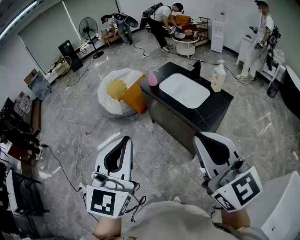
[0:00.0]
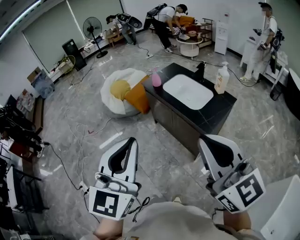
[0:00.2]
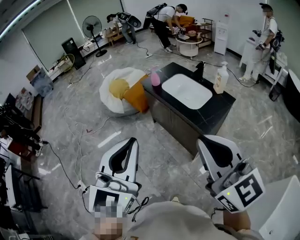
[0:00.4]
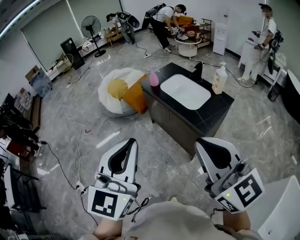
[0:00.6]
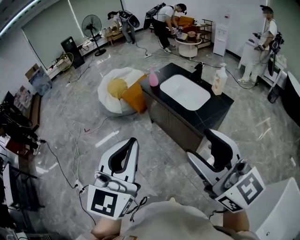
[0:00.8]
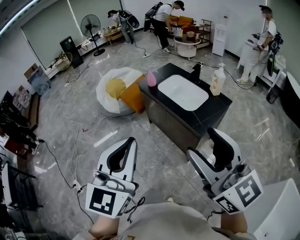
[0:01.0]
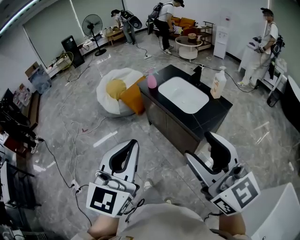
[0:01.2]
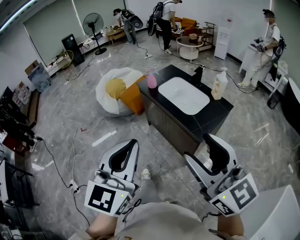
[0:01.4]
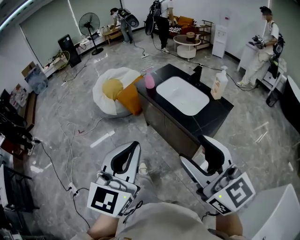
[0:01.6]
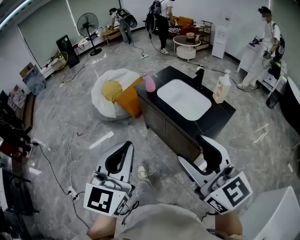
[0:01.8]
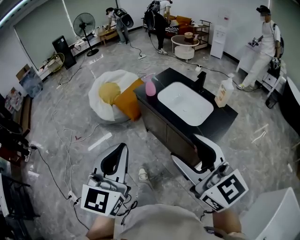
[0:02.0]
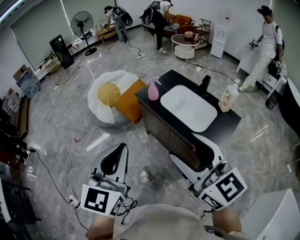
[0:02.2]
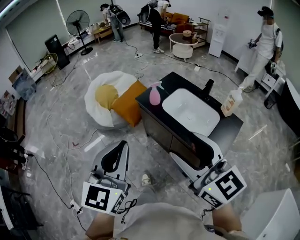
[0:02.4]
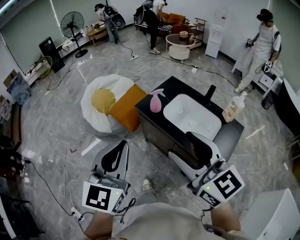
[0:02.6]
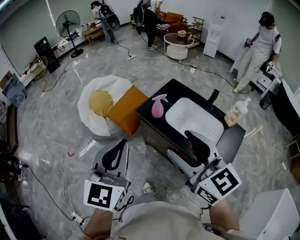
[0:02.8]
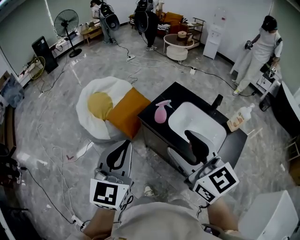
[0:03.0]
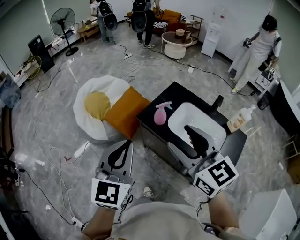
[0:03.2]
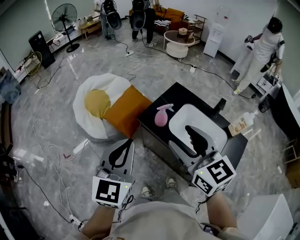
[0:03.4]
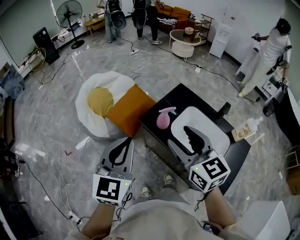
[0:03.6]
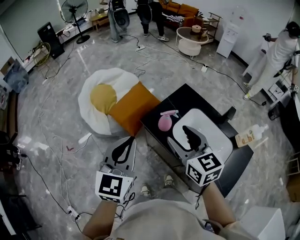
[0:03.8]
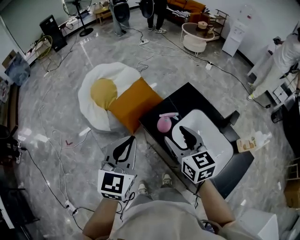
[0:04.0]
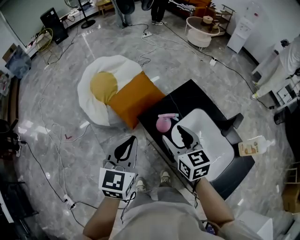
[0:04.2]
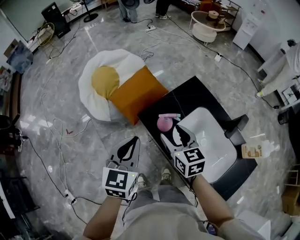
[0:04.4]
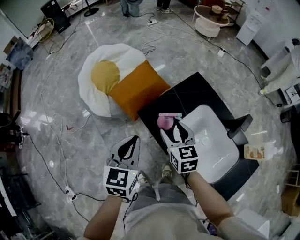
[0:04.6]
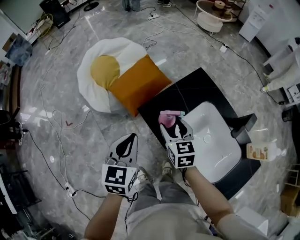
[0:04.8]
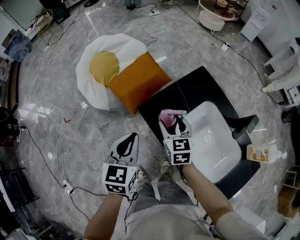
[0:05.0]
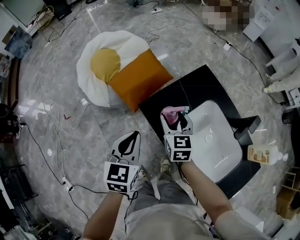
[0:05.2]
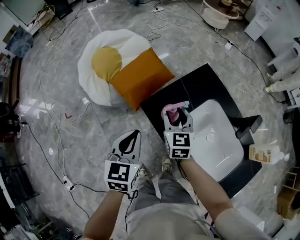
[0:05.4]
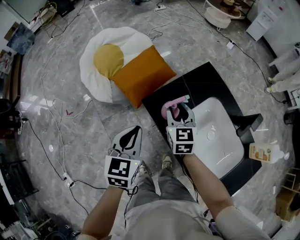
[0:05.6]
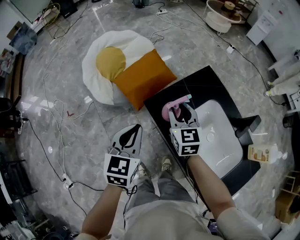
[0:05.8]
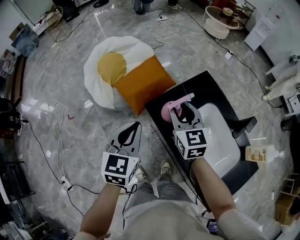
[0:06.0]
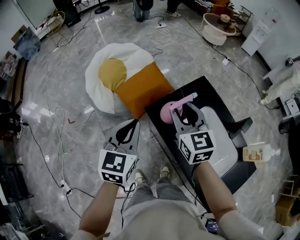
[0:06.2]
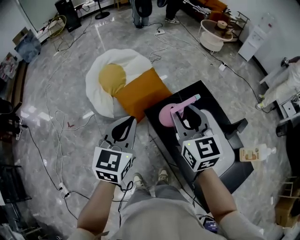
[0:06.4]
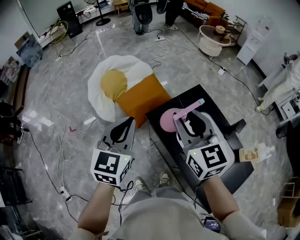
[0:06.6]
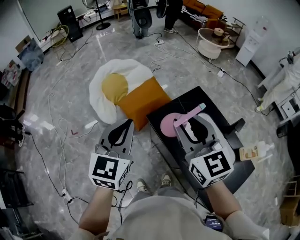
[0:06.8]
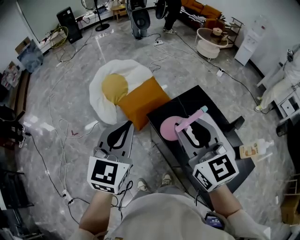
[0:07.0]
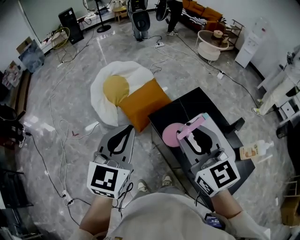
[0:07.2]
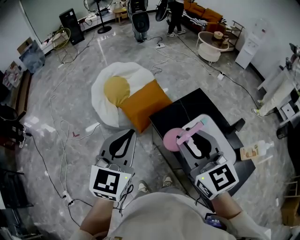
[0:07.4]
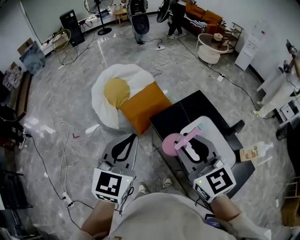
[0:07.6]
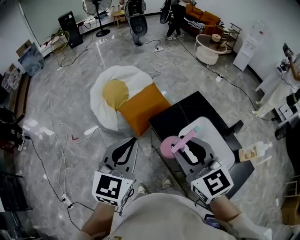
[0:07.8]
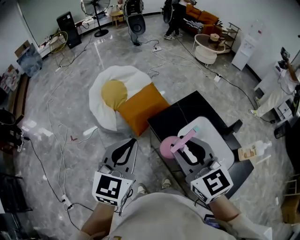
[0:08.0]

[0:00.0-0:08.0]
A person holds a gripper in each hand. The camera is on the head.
0:00.0 to 0:01.6: The left gripper heads downward and forward, covering about 10 cm. Meanwhile the right gripper is displaced downward by about 5 cm, and opens up.
0:01.6 to 0:03.2: The two grippers travel together, forward, about 50 cm.
0:03.2 to 0:04.8: The two grippers go roughly 35 cm downward and forward. The left gripper rotates roughly 30 degrees, while the right gripper turns by approximately 20 degrees.
0:04.8 to 0:06.4: The right gripper moves upward, approximately 20 cm, turns by some 20 degrees, and closes up, while the left gripper moves upward, approximately 10 cm.
0:06.4 to 0:08.0: Both grippers travel together backward and upward, approximately 15 cm.

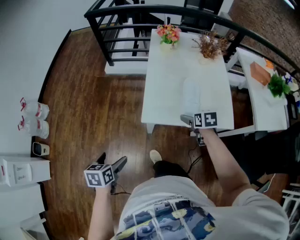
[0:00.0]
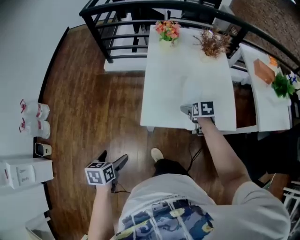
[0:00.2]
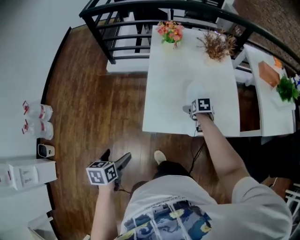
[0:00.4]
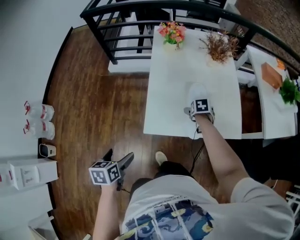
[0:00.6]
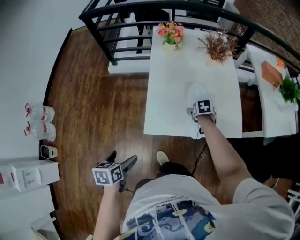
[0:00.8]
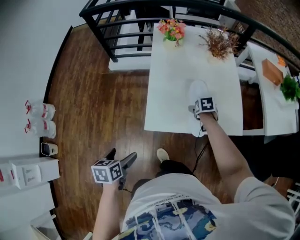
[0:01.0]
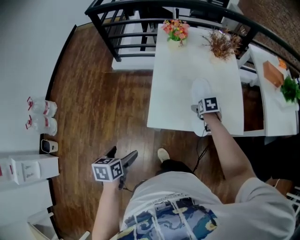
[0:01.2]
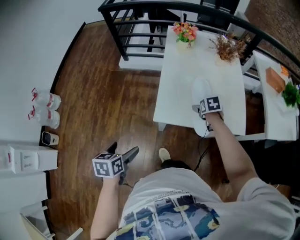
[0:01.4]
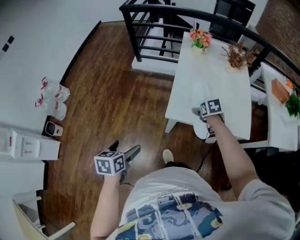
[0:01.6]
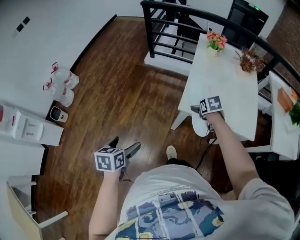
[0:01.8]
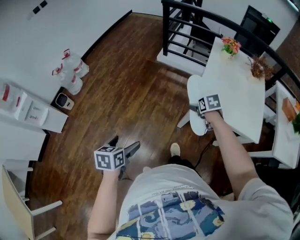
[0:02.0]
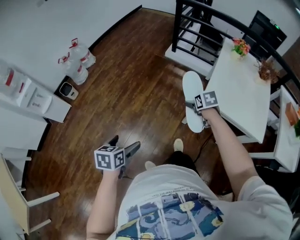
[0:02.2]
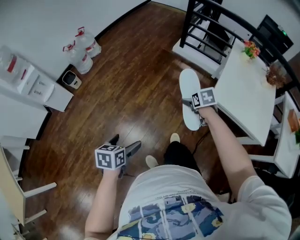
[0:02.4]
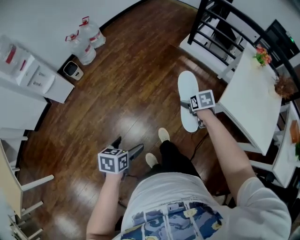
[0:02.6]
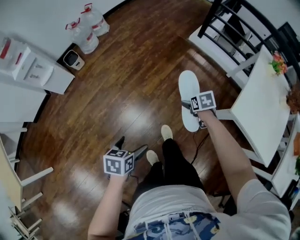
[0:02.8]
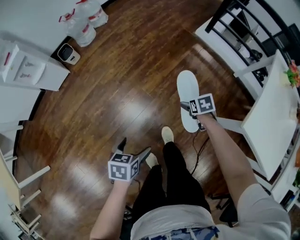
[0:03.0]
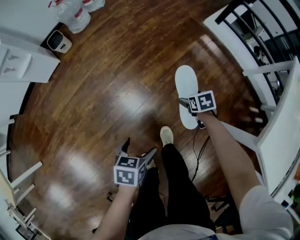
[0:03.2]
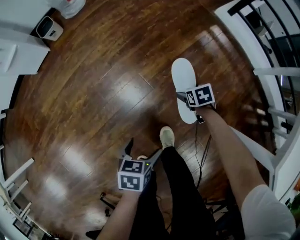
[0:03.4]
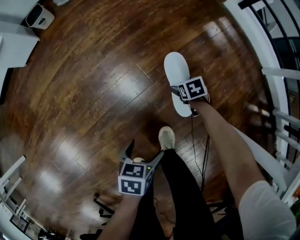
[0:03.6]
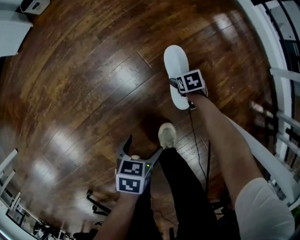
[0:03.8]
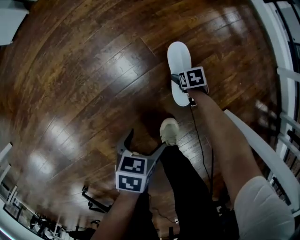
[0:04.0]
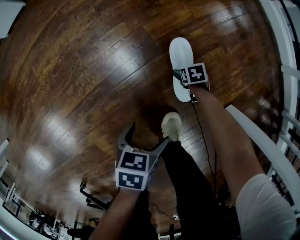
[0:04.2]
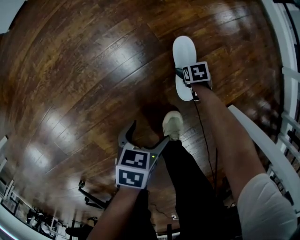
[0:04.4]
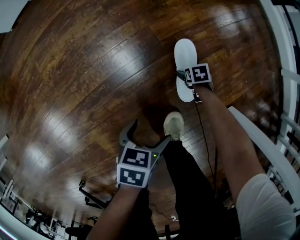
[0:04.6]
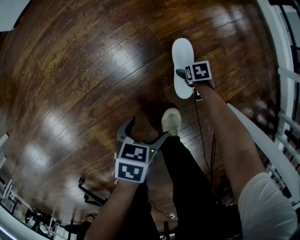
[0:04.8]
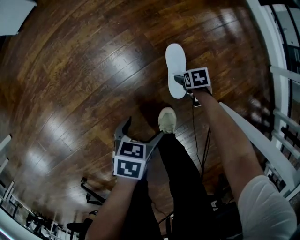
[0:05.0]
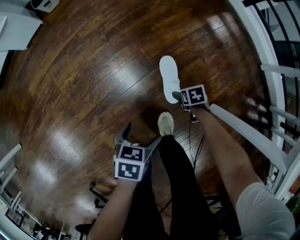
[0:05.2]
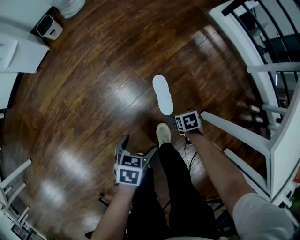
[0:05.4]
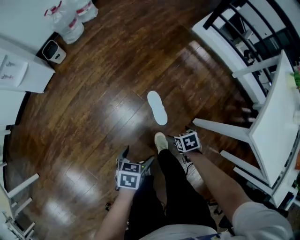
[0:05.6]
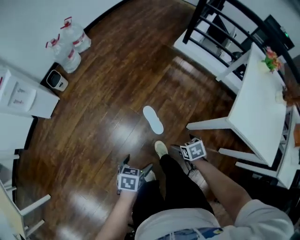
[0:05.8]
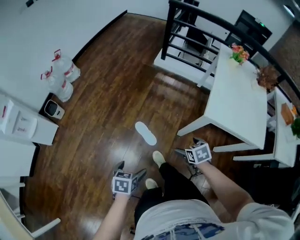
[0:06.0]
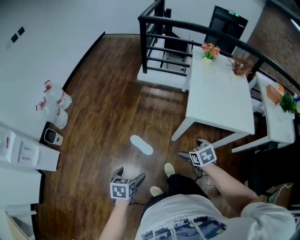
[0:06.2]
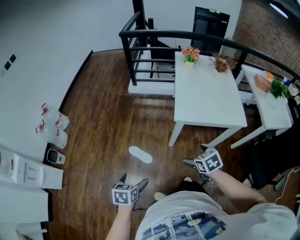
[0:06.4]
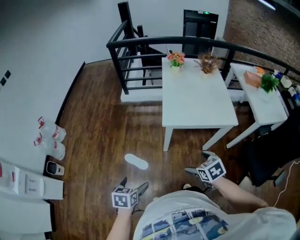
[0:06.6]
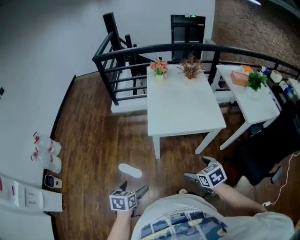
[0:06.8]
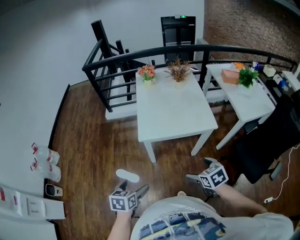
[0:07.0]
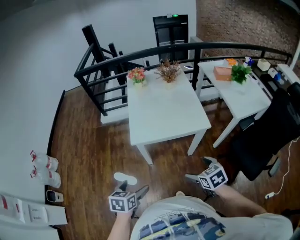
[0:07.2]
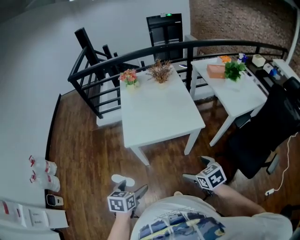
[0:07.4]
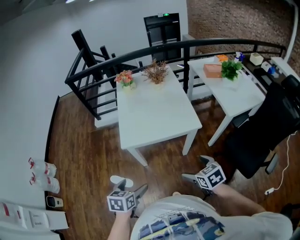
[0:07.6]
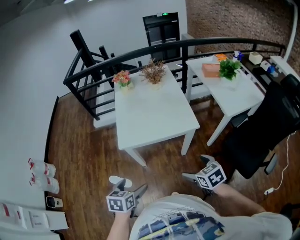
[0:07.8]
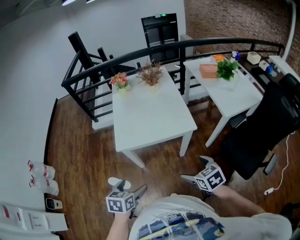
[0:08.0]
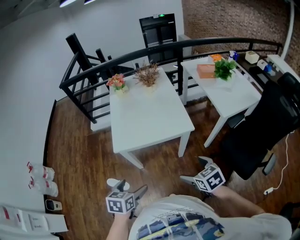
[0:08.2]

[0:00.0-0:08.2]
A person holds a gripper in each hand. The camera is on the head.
0:00.0 to 0:01.6: The right gripper goes roughly 10 cm to the left and forward; the left gripper moves roughly 10 cm forward and comes back.
0:01.6 to 0:03.2: The left gripper heads downward, covering roughly 35 cm, and swivels approximately 30 degrees. Meanwhile the right gripper changes place by some 70 cm, and swivels roughly 40 degrees.
0:03.2 to 0:05.0: Both grippers travel together downward, roughly 35 cm.
0:05.0 to 0:06.6: Both grippers travel together upward, some 80 cm. The left gripper rolls clockwise, seen from behind, by approximately 50 degrees, while the right gripper turns by about 50 degrees.
0:06.6 to 0:08.2: The two grippers go some 30 cm to the right.

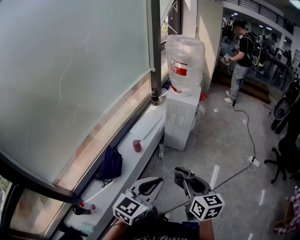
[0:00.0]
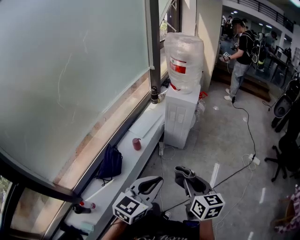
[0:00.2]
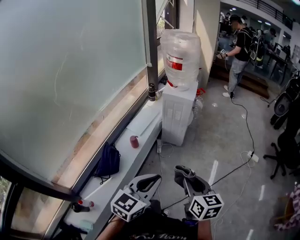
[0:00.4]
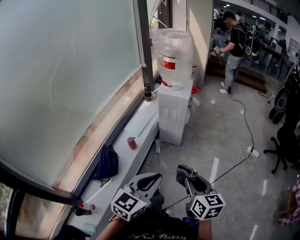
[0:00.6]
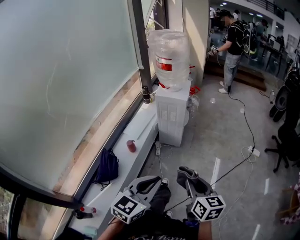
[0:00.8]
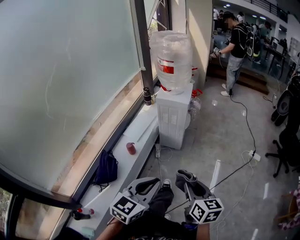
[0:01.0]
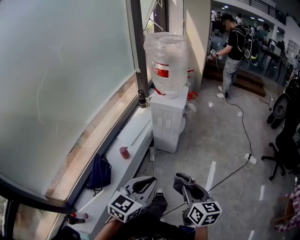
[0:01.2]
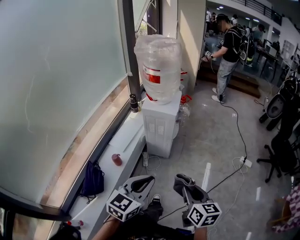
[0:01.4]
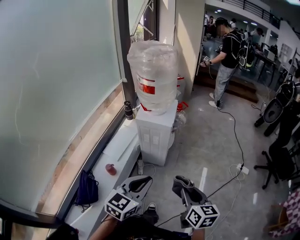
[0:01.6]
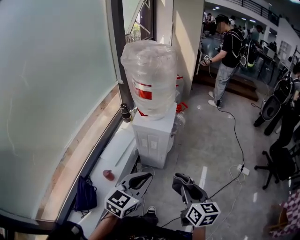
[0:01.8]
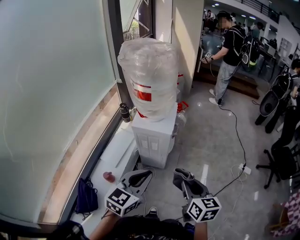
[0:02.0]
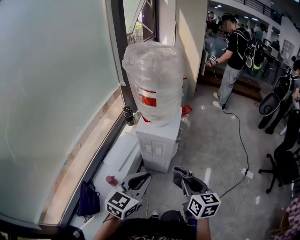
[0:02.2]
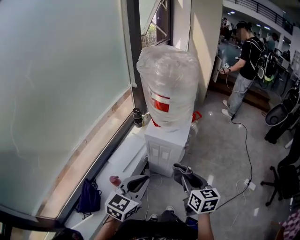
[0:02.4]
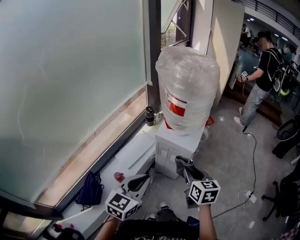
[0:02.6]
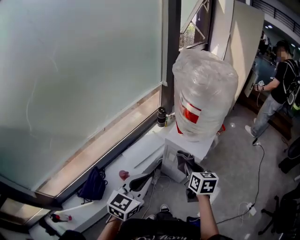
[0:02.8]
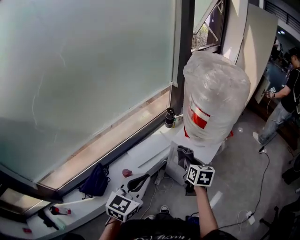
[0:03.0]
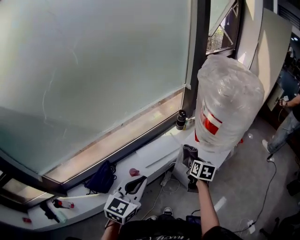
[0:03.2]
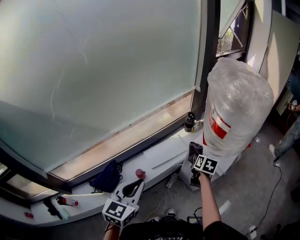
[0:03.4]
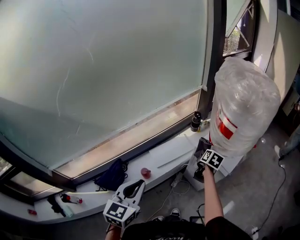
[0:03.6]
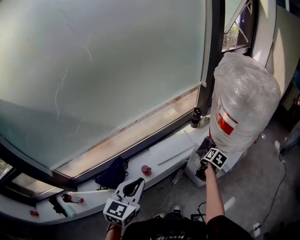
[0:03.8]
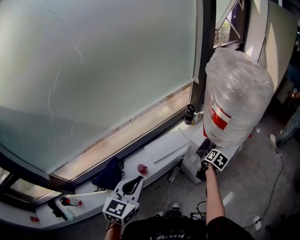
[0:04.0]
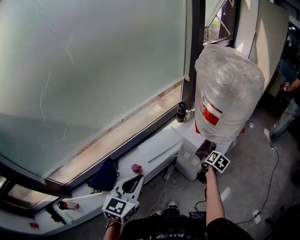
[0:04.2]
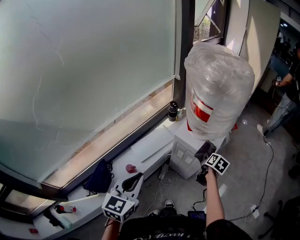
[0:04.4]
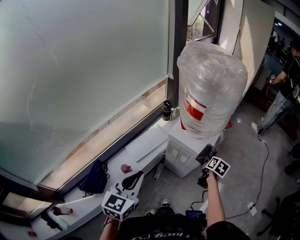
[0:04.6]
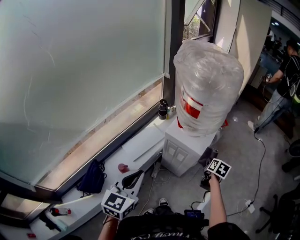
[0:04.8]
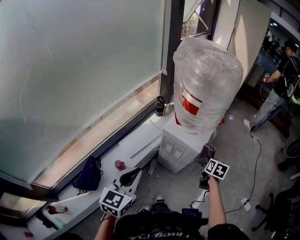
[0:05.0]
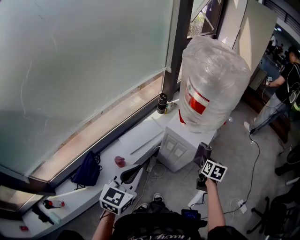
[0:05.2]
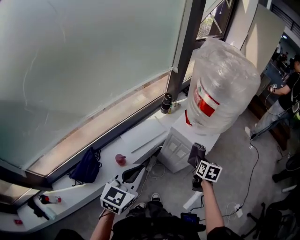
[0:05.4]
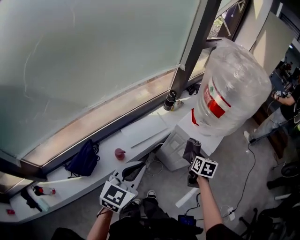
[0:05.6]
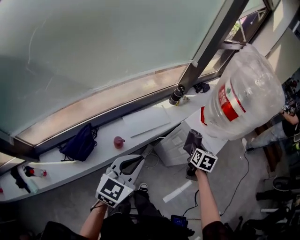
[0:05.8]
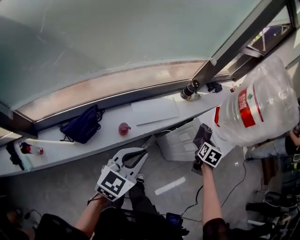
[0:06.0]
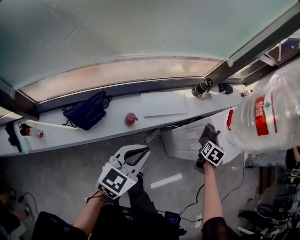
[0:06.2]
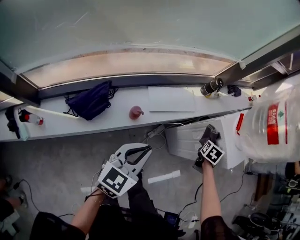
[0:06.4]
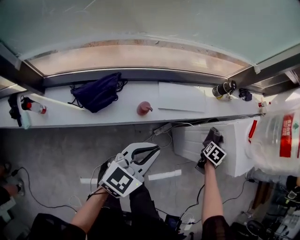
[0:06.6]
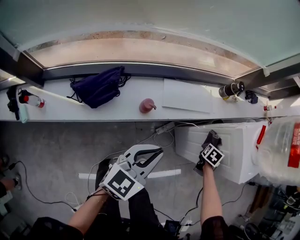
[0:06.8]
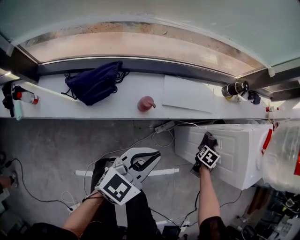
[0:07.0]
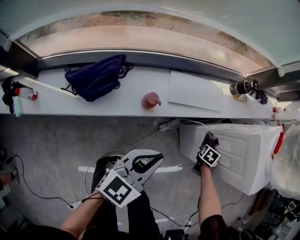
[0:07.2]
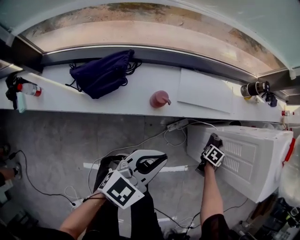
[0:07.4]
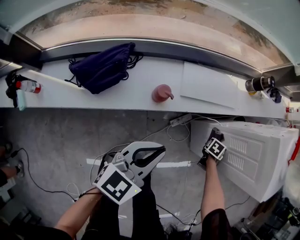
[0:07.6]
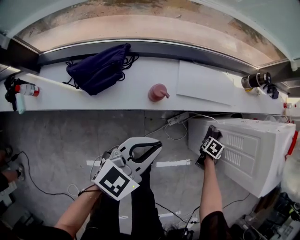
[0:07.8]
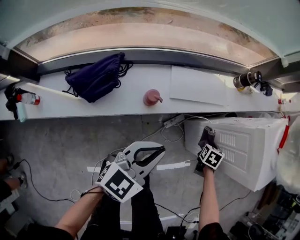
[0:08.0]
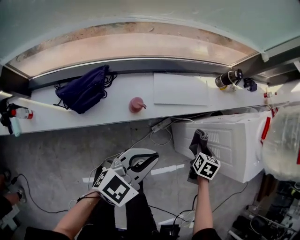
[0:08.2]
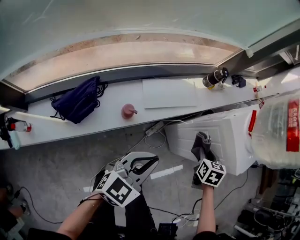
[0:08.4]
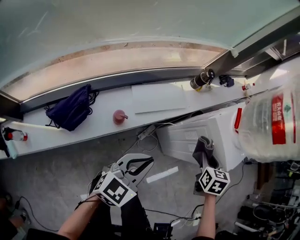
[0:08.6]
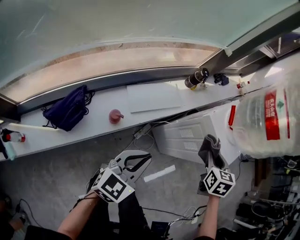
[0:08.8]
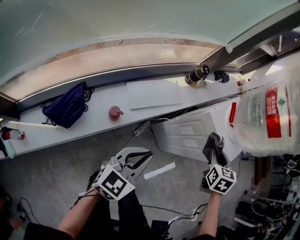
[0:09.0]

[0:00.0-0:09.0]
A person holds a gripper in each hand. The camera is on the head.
0:00.0 to 0:01.6: The right gripper shifts about 25 cm forward and to the right, while the left gripper goes approximately 25 cm forward.
0:01.6 to 0:03.0: The left gripper shifts by some 25 cm, and changes its angle by some 30 degrees. The right gripper changes place by roughly 40 cm, and swivels about 30 degrees.
0:03.0 to 0:04.4: The right gripper moves to the right and downward, some 15 cm, and changes its angle by about 30 degrees.
0:04.4 to 0:06.0: The left gripper is displaced downward and to the left by roughly 10 cm. Meanwhile the right gripper travels to the left by about 15 cm, and rolls counterclockwise, seen from behind, by roughly 40 degrees.
0:06.0 to 0:07.6: The right gripper is displaced downward by roughly 40 cm, and rotates some 30 degrees; the left gripper heads downward, covering about 25 cm.
0:07.6 to 0:09.0: The left gripper travels upward and to the right by roughly 15 cm. The right gripper shifts approximately 40 cm upward, and turns by roughly 20 degrees.
